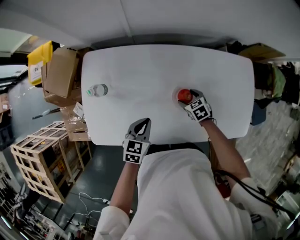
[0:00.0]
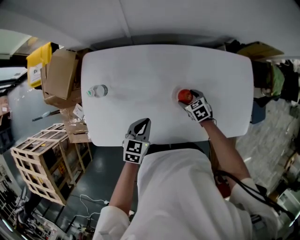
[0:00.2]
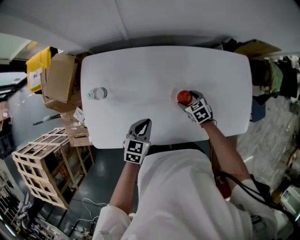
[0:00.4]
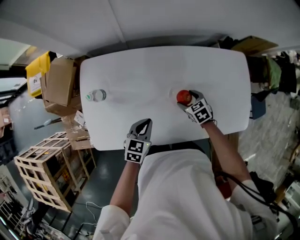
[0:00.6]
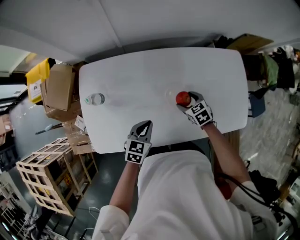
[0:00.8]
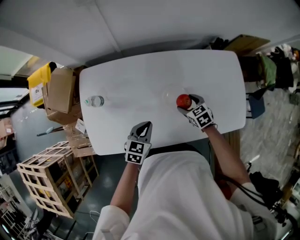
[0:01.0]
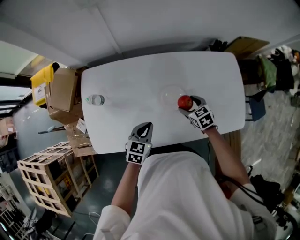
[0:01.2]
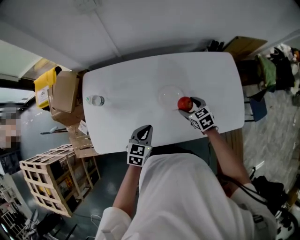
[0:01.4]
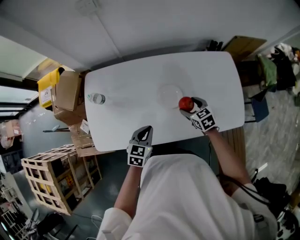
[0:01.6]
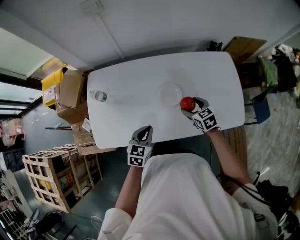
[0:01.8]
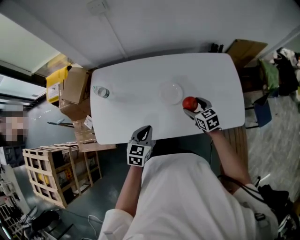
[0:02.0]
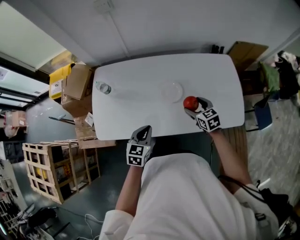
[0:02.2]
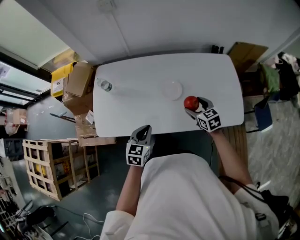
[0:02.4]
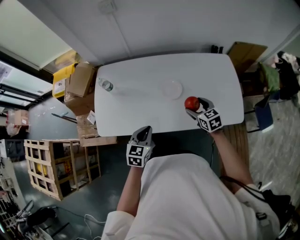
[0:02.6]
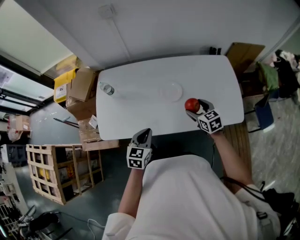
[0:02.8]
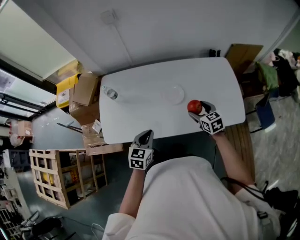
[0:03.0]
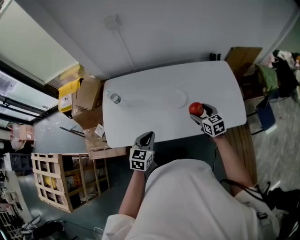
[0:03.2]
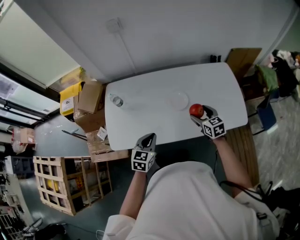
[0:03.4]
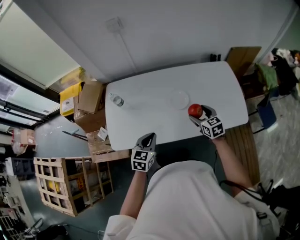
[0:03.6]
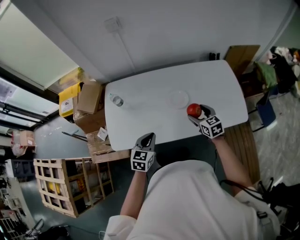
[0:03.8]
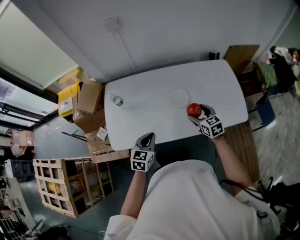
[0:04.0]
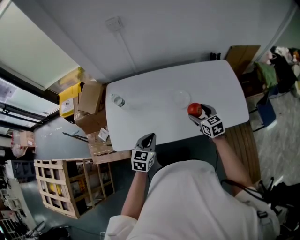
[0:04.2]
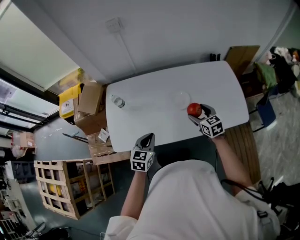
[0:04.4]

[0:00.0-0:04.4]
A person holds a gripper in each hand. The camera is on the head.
0:00.0 to 0:01.4: The left gripper ends up roughly 5 cm from where it was. Meanwhile the right gripper moves upward and backward, about 10 cm.
0:01.4 to 0:03.0: Both grippers travel together backward and upward, some 15 cm.
0:03.0 to 0:04.4: The two grippers go approximately 5 cm to the left.

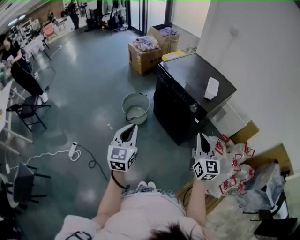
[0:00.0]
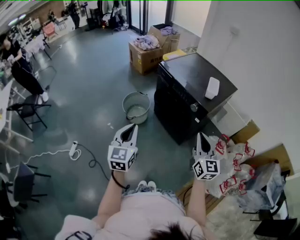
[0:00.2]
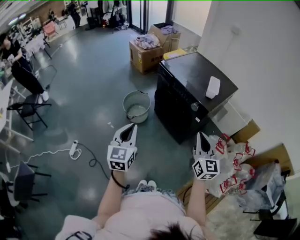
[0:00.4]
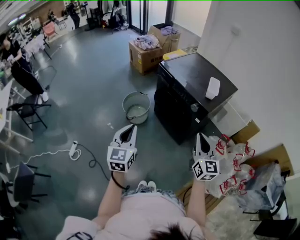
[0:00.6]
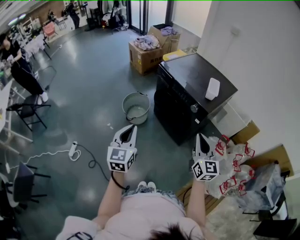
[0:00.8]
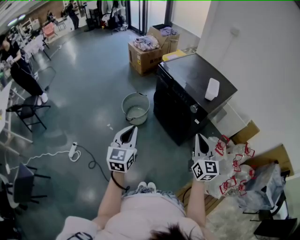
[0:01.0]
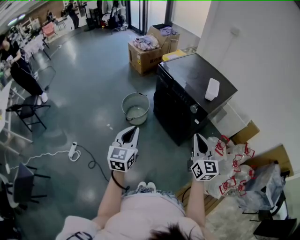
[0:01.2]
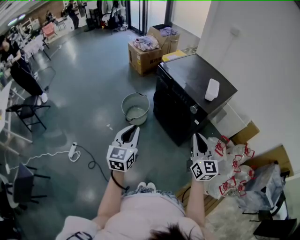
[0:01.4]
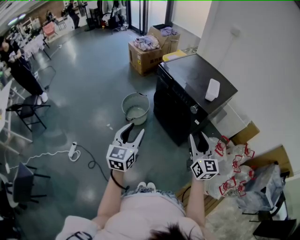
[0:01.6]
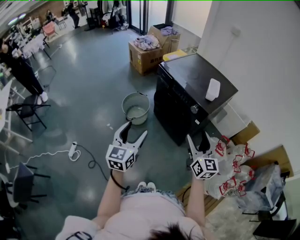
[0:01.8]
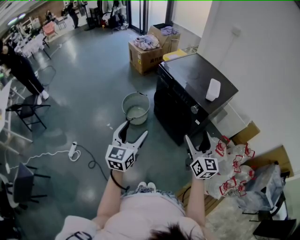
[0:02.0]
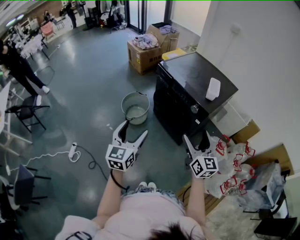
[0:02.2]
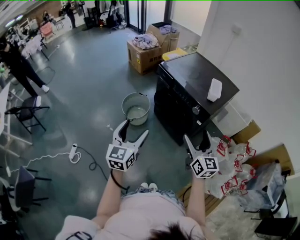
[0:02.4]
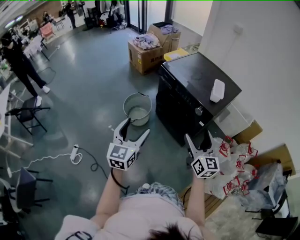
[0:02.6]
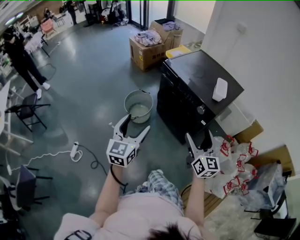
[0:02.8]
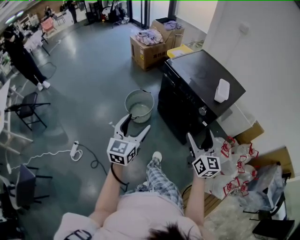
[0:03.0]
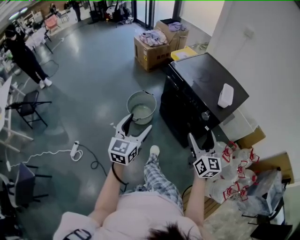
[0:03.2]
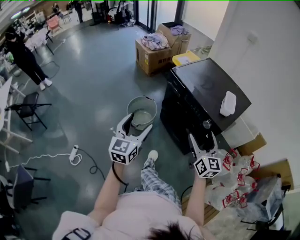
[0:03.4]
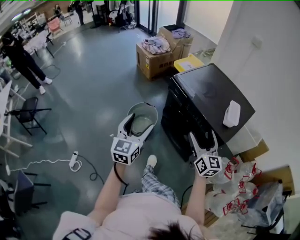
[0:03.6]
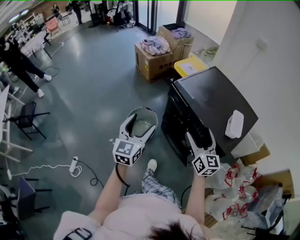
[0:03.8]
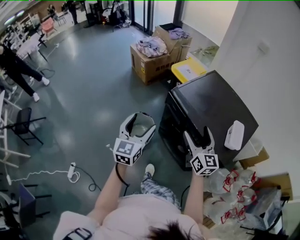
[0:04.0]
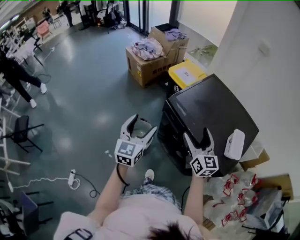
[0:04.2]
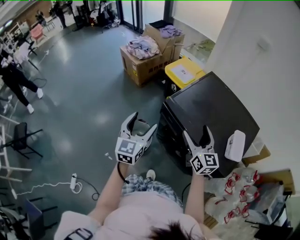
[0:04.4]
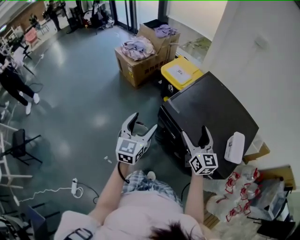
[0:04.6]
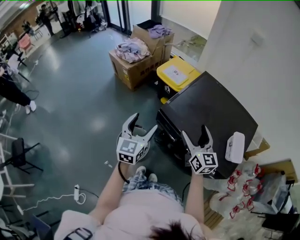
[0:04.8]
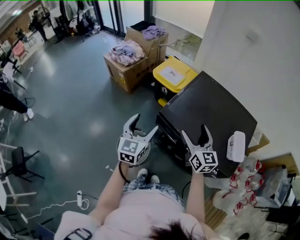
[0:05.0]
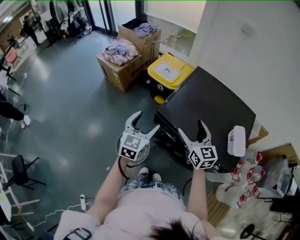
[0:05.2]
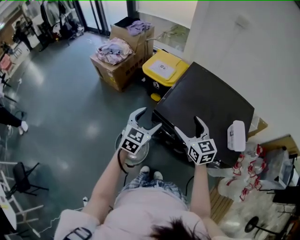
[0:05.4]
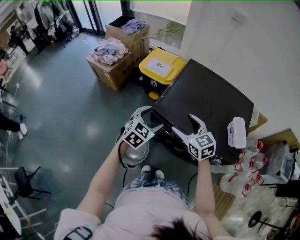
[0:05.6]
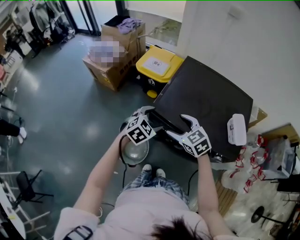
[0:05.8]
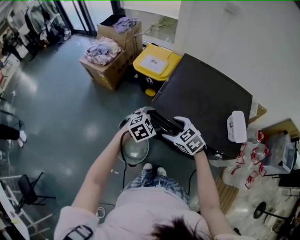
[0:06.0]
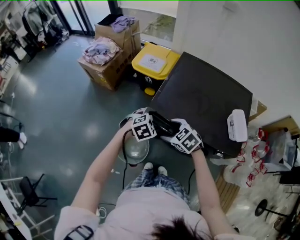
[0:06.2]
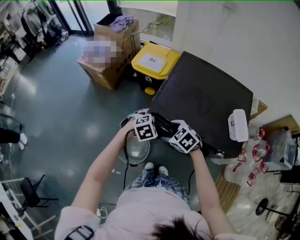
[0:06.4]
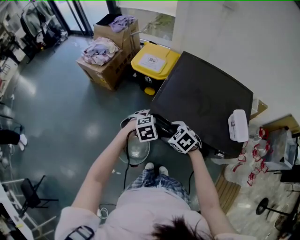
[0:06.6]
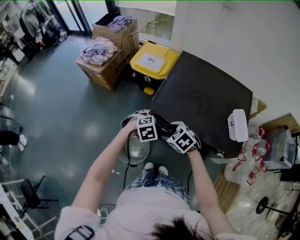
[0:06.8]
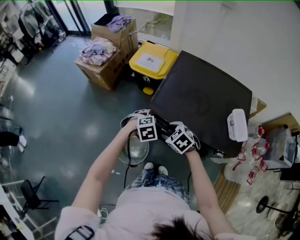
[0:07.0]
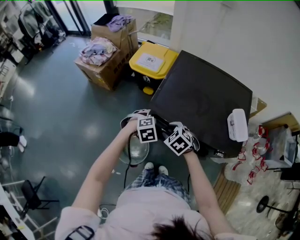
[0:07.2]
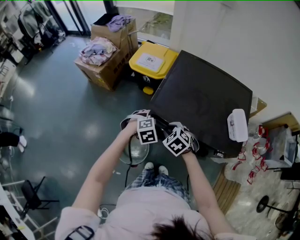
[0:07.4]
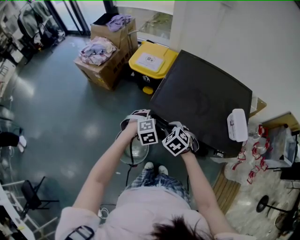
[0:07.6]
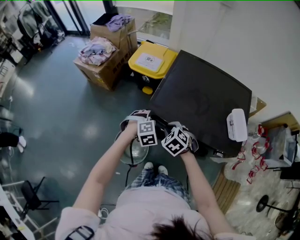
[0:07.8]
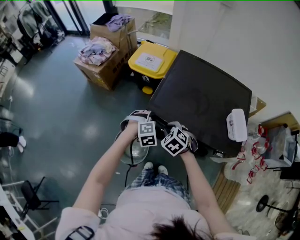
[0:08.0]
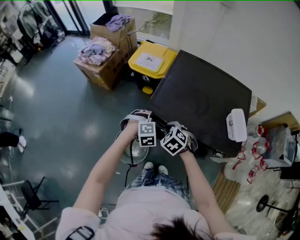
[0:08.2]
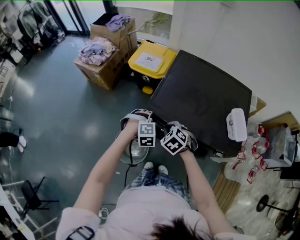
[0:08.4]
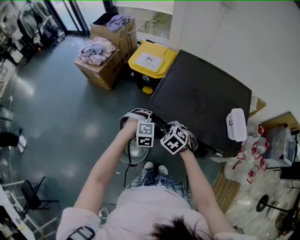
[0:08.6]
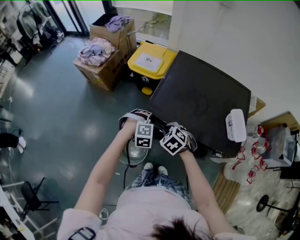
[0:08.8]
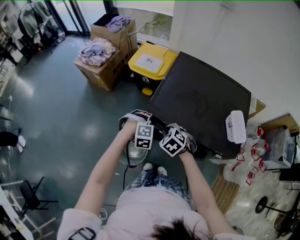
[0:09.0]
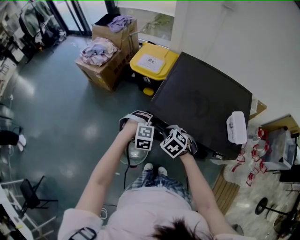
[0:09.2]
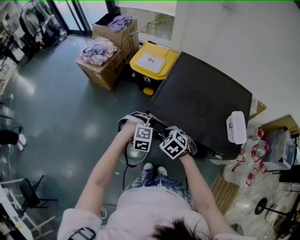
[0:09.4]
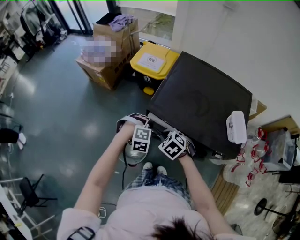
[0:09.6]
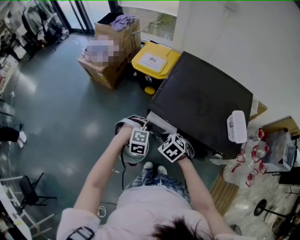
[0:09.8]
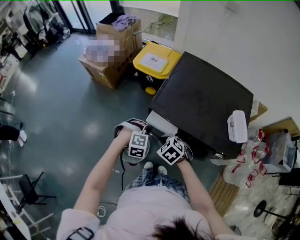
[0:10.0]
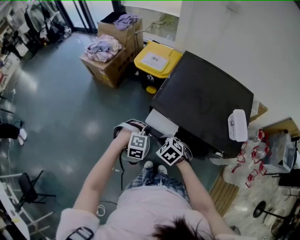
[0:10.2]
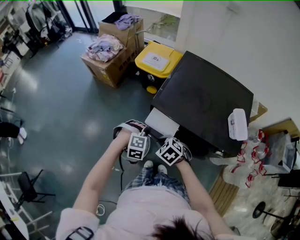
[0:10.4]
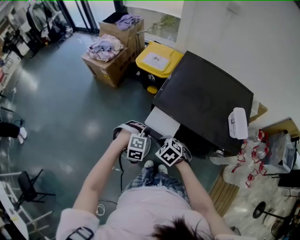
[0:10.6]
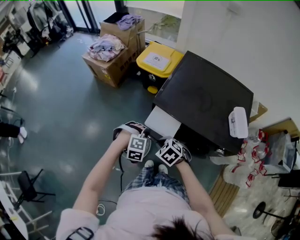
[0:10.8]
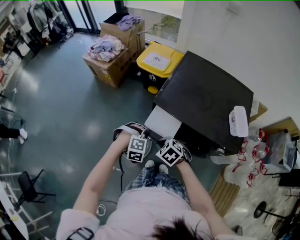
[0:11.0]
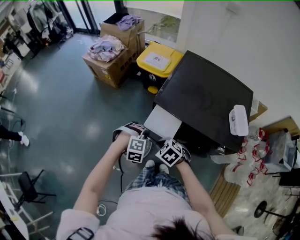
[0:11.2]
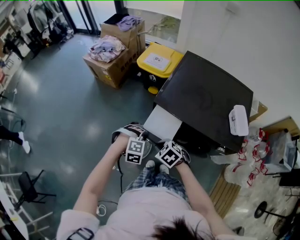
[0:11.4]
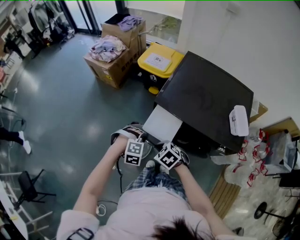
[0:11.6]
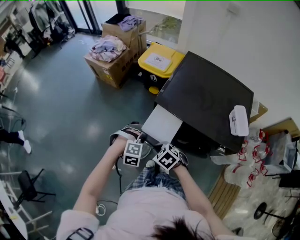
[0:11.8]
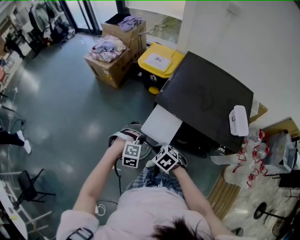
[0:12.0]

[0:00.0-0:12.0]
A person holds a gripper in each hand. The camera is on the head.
0:00.0 to 0:01.6: The right gripper opens. Meanwhile the left gripper opens up.
0:01.6 to 0:03.0: Both grippers travel together forward, about 5 cm. The left gripper opens; the right gripper opens.
0:03.0 to 0:04.4: Both grippers are carried forward, roughly 40 cm.
0:04.4 to 0:06.0: The right gripper shifts approximately 15 cm to the left, downward and forward, and angles its fingers downward, by about 40 degrees, while the left gripper moves downward, forward and to the right, approximately 20 cm, and tilts its fingers approximately 40 degrees downward.
0:06.0 to 0:07.6: The right gripper moves downward, roughly 5 cm, rotates some 20 degrees, and closes its fingers. The left gripper shifts by roughly 5 cm, turns by roughly 20 degrees, and closes up.
0:07.6 to 0:09.0: The left gripper changes its angle by approximately 20 degrees.
0:09.0 to 0:10.4: The two grippers go some 10 cm backward and to the left.
0:10.4 to 0:12.0: The grippers both shift backward and to the left by roughly 10 cm.

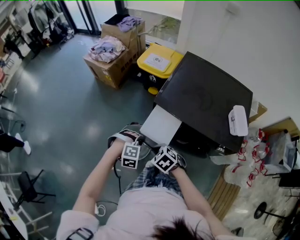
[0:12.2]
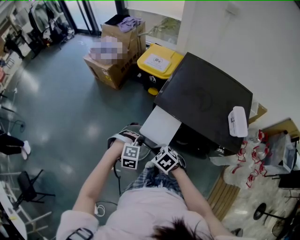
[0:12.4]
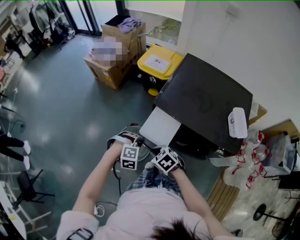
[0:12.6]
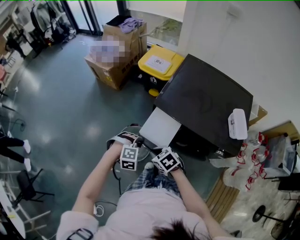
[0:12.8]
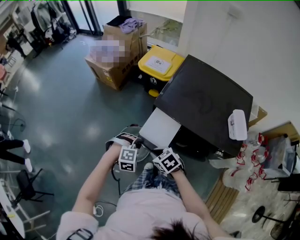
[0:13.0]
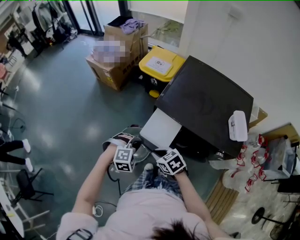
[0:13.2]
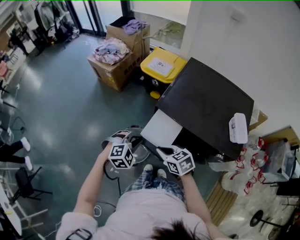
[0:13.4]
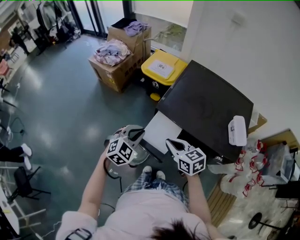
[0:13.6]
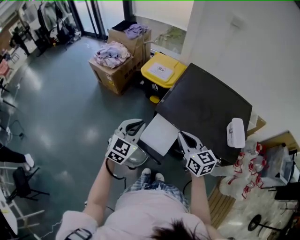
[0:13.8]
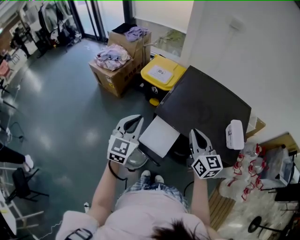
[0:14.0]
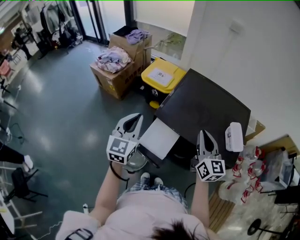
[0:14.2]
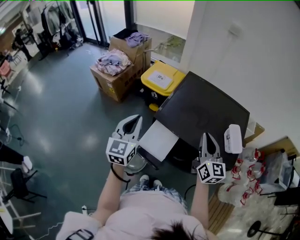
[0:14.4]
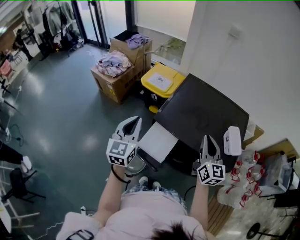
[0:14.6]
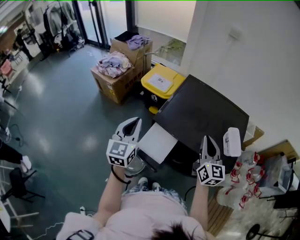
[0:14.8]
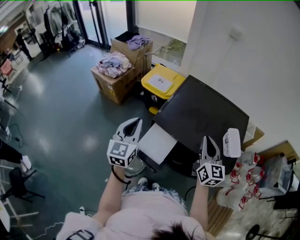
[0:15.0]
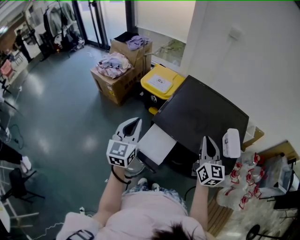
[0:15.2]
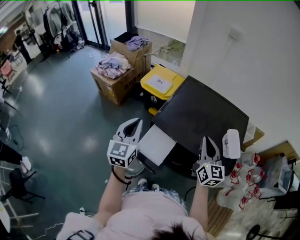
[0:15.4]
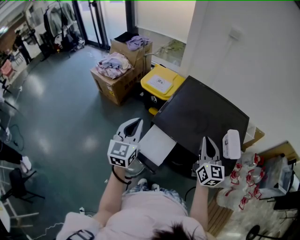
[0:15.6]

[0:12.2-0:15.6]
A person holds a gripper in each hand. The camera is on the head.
0:12.2 to 0:13.8: The right gripper heads upward, to the right and forward, covering approximately 25 cm, and tilts its fingers approximately 40 degrees upward, while the left gripper travels upward and forward by some 20 cm, and angles its fingers upward, by approximately 50 degrees.
0:13.8 to 0:15.6: The left gripper goes approximately 5 cm upward, and rotates about 30 degrees; the right gripper heads to the right and upward, covering about 15 cm, and changes its angle by some 30 degrees.

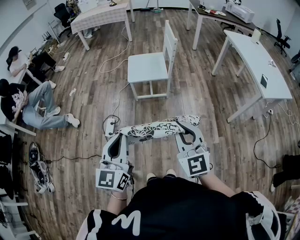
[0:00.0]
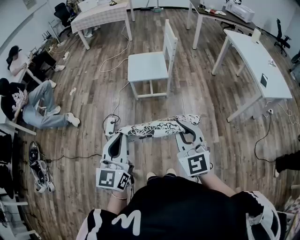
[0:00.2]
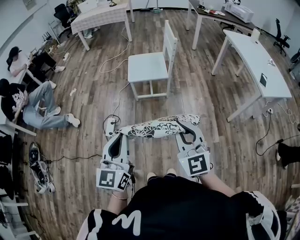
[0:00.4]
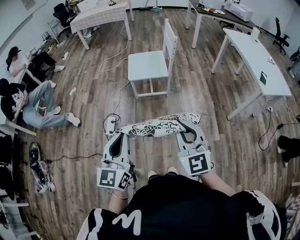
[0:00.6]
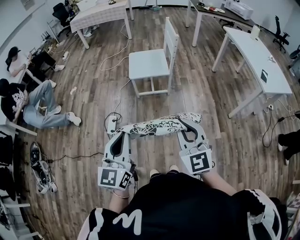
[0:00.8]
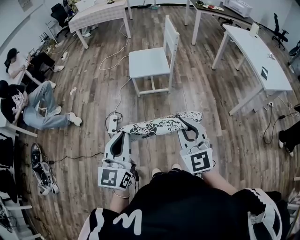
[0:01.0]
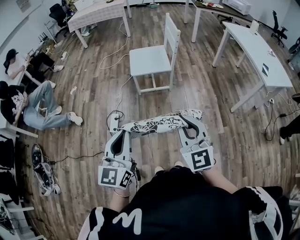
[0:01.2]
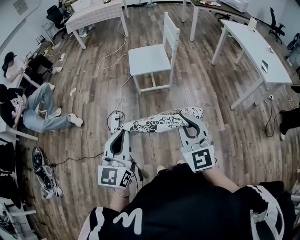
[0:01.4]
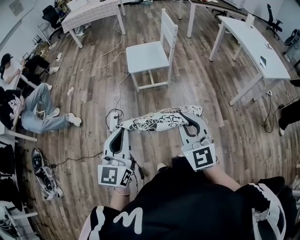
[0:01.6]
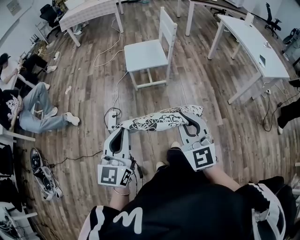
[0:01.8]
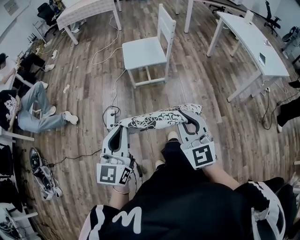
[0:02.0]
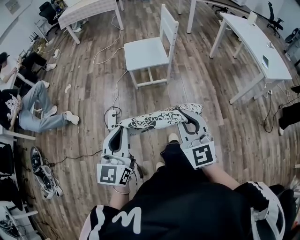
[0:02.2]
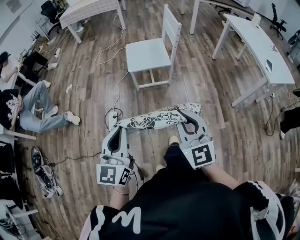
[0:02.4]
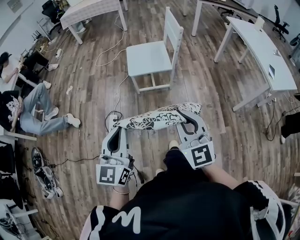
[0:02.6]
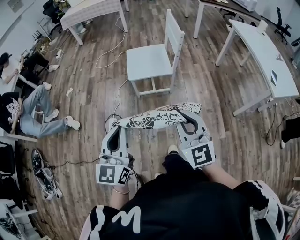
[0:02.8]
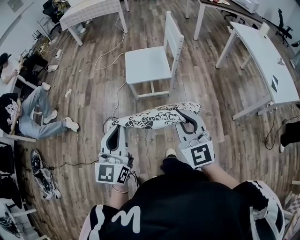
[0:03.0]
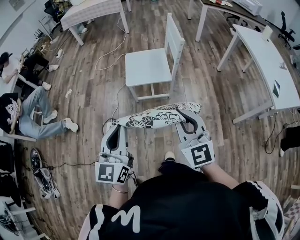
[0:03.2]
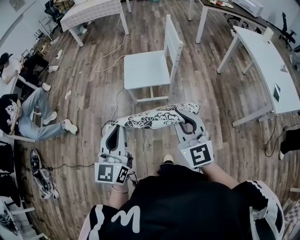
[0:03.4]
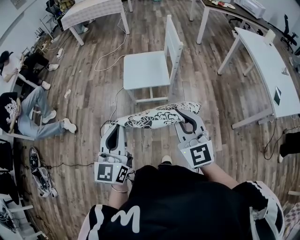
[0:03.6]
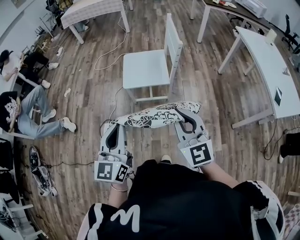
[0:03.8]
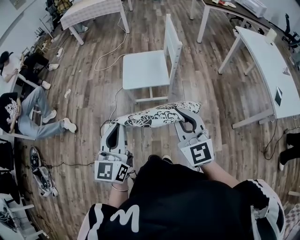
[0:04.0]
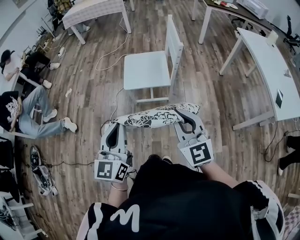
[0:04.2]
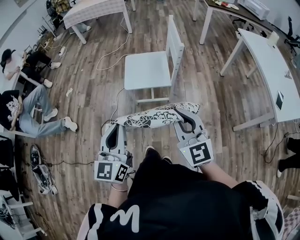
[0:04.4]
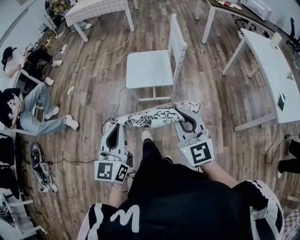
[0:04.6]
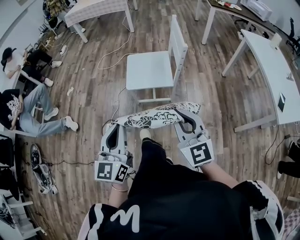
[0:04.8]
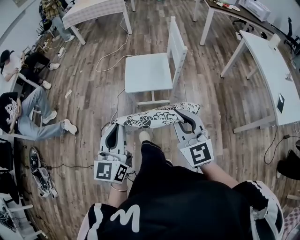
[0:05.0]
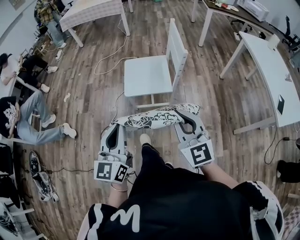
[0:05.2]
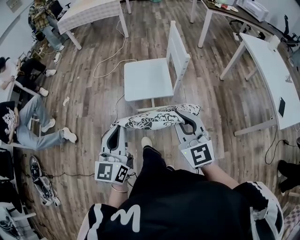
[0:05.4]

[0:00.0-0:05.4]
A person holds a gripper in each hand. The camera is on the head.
0:00.0 to 0:01.4: Both grippers travel together to the left, approximately 5 cm.
0:01.4 to 0:02.8: The two grippers go some 15 cm forward.
0:02.8 to 0:04.0: Both grippers move forward and to the right, approximately 15 cm.
0:04.0 to 0:05.4: The grippers both shift forward by approximately 10 cm.
